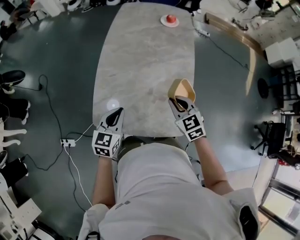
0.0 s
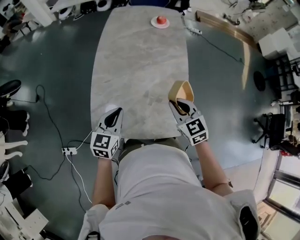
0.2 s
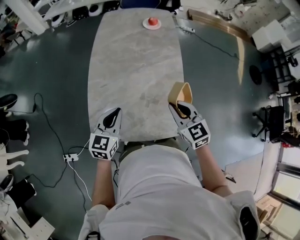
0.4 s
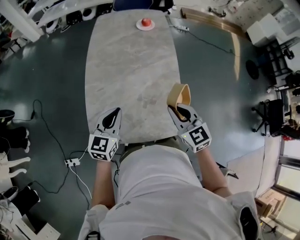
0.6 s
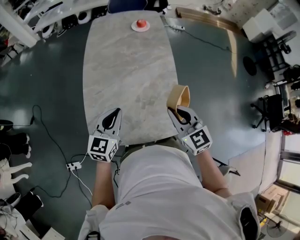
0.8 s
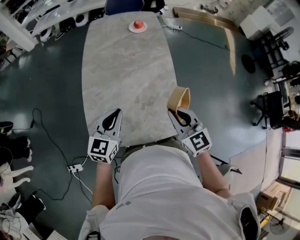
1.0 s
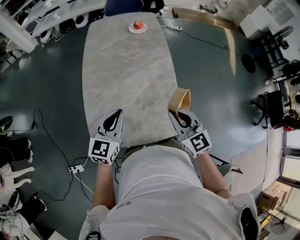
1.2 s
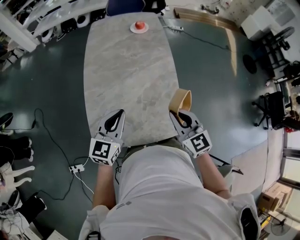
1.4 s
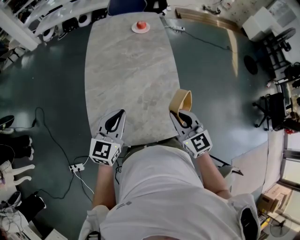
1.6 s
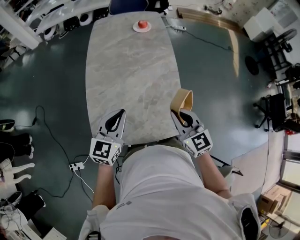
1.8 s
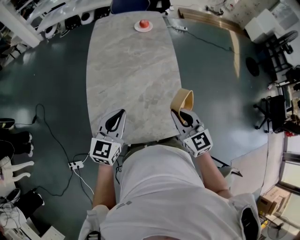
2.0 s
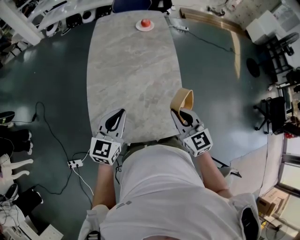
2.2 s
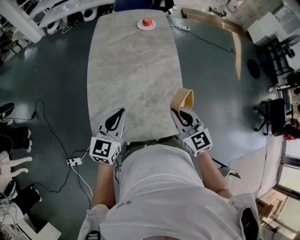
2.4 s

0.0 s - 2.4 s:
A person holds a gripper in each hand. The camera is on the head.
0.0 s - 1.2 s: The left gripper moves upward and to the right, approximately 10 cm. The right gripper heads upward and backward, covering approximately 10 cm, and turns by some 20 degrees.
1.2 s - 2.4 s: The grippers make only small movements.

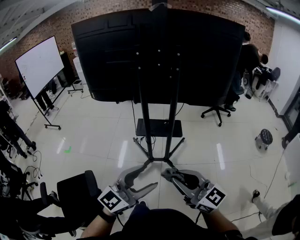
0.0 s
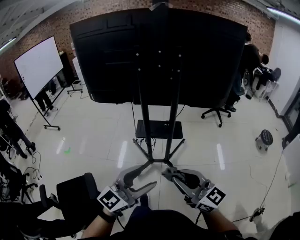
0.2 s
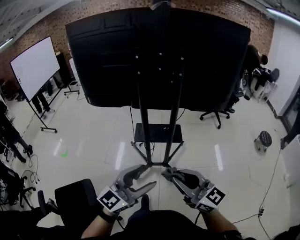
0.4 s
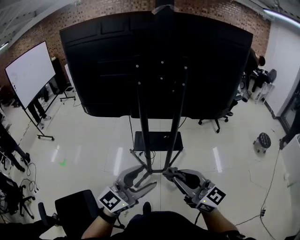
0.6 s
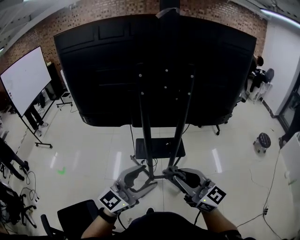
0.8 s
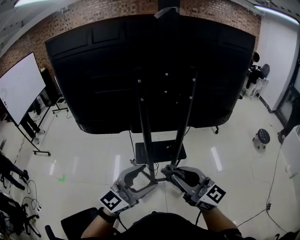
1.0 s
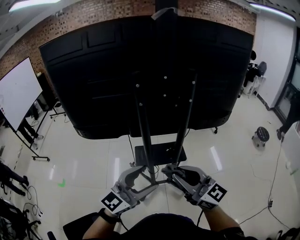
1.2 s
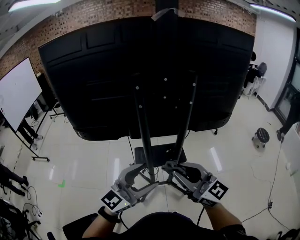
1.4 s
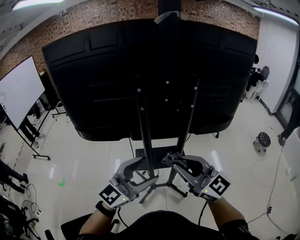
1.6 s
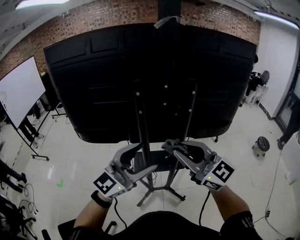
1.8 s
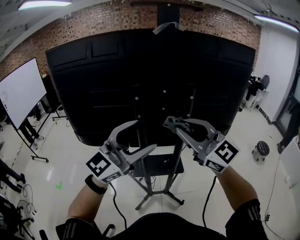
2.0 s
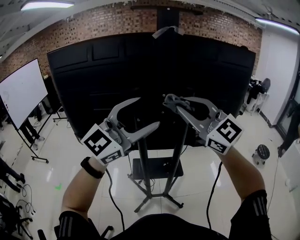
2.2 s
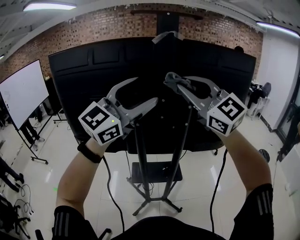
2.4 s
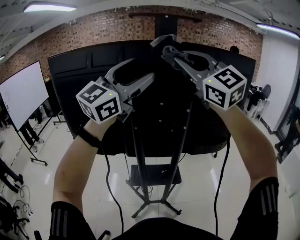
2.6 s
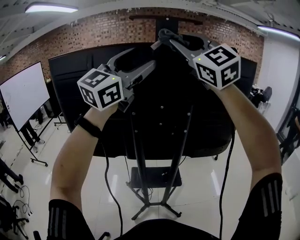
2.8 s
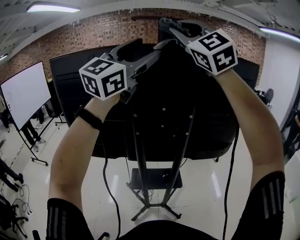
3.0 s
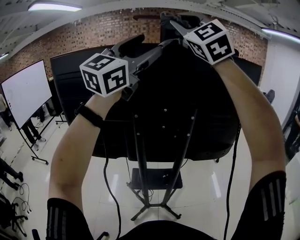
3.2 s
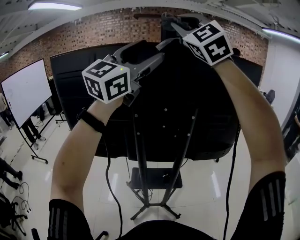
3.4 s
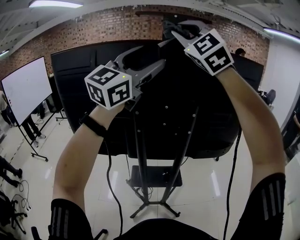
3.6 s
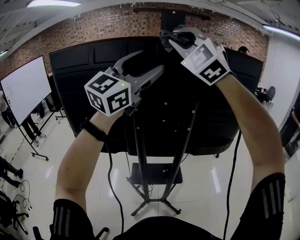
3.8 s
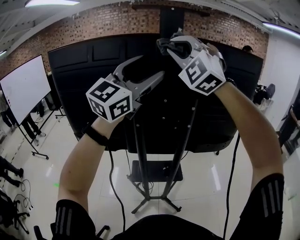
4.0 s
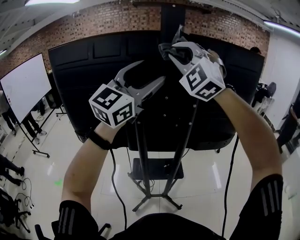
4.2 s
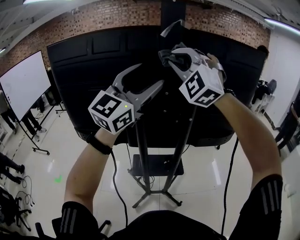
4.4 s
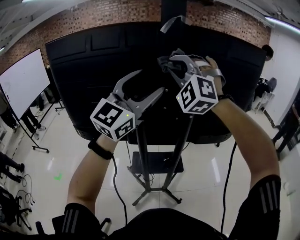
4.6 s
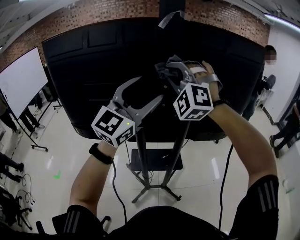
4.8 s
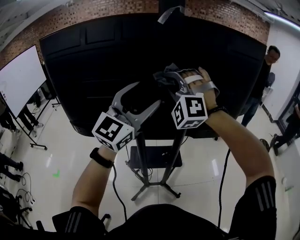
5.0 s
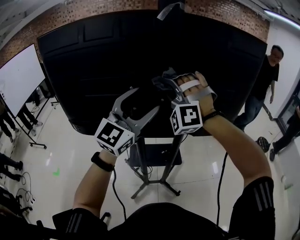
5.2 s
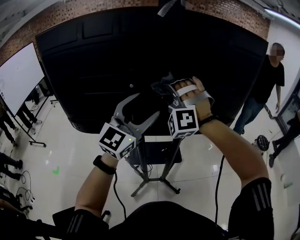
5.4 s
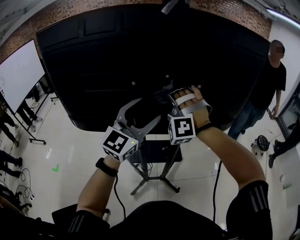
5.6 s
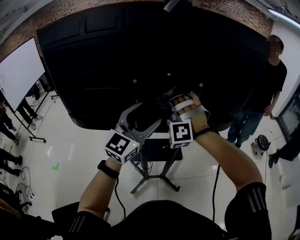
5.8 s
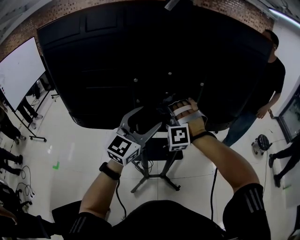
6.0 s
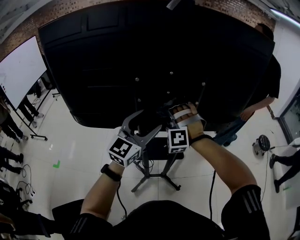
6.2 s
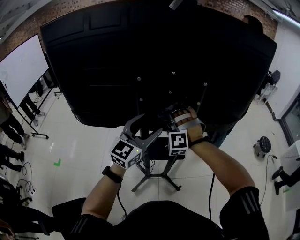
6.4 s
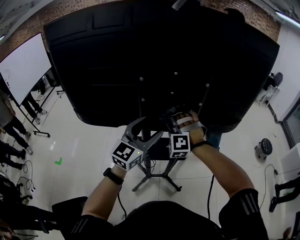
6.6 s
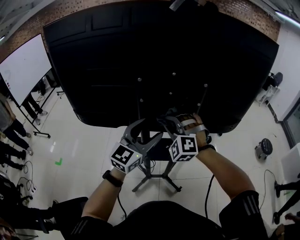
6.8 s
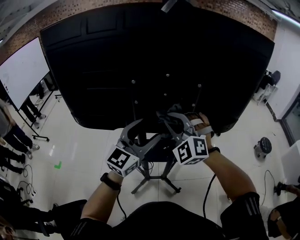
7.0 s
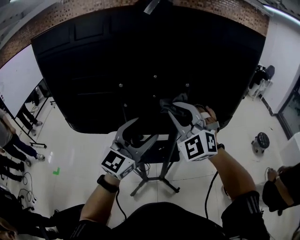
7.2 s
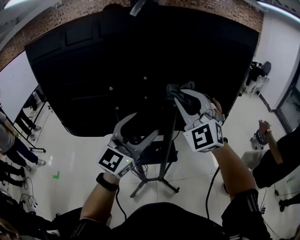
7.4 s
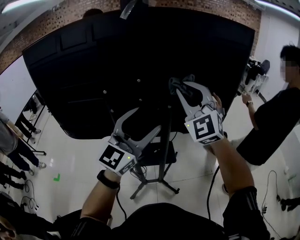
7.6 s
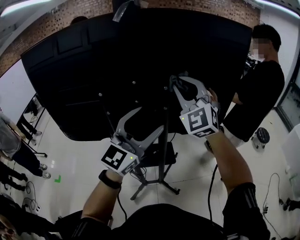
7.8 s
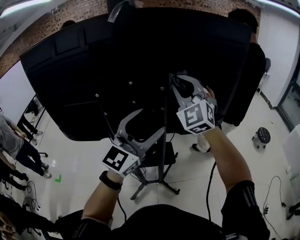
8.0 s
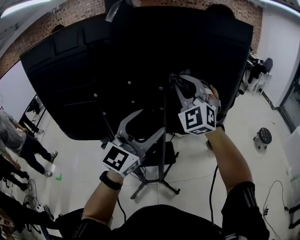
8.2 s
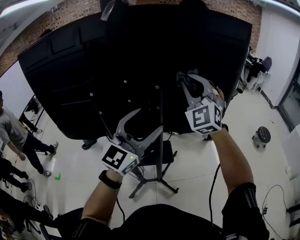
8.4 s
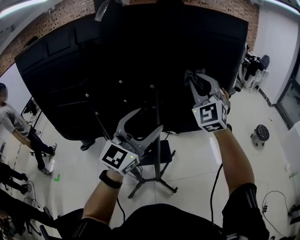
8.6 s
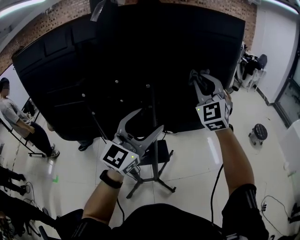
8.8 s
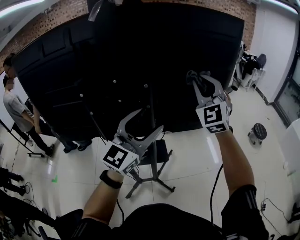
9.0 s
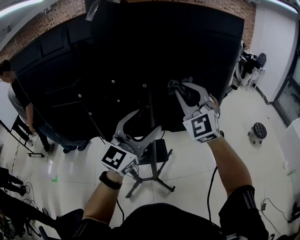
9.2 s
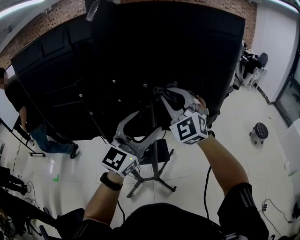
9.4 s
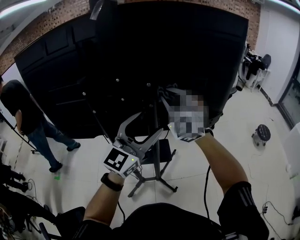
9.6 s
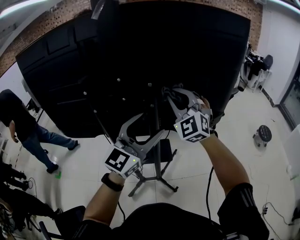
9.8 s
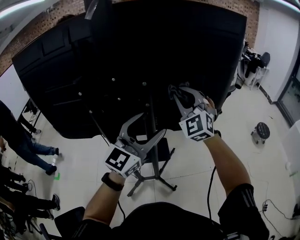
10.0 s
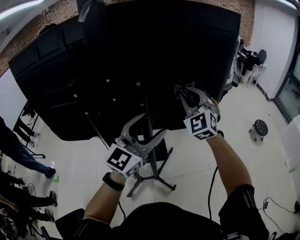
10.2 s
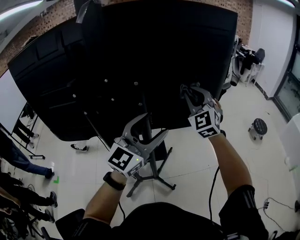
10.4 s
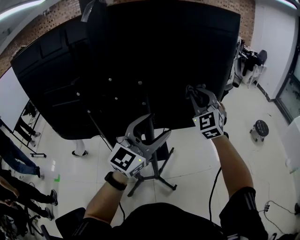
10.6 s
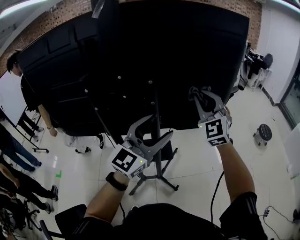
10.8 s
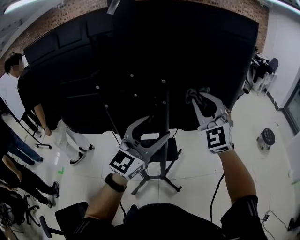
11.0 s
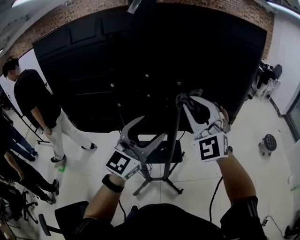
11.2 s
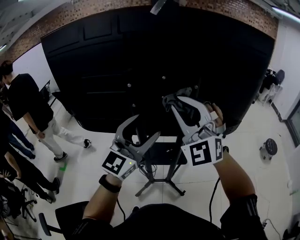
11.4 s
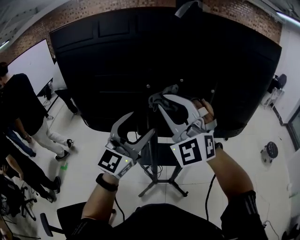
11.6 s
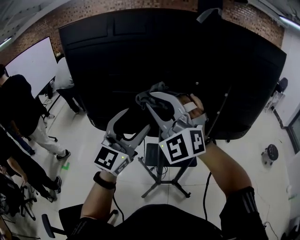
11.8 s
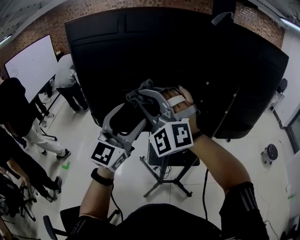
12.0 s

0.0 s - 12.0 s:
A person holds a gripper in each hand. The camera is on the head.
0.0 s - 1.6 s: Both grippers move forward, approximately 30 cm.
1.6 s - 3.0 s: The two grippers go approximately 50 cm upward and forward. The left gripper rotates approximately 20 degrees; the right gripper twists about 50 degrees counterclockwise, seen from behind.
3.0 s - 4.4 s: The grippers both shift downward by roughly 15 cm. The right gripper changes its angle by approximately 30 degrees.
4.4 s - 6.0 s: The two grippers go about 25 cm downward. The right gripper turns by approximately 30 degrees.
6.0 s - 7.6 s: The right gripper moves upward and to the right, approximately 25 cm, and rotates around the line of its fingers by approximately 50 degrees, clockwise from behind. Meanwhile the left gripper travels to the right and upward by some 10 cm.
7.6 s - 9.0 s: The left gripper is displaced to the right by roughly 10 cm. Meanwhile the right gripper travels to the right and forward by about 15 cm.
9.0 s - 10.4 s: The right gripper moves downward, approximately 10 cm, and travels to the left and back again, roughly 10 cm each way; the left gripper changes place by roughly 5 cm.
10.4 s - 12.0 s: The left gripper moves about 40 cm, and changes its angle by some 20 degrees, while the right gripper changes place by roughly 50 cm, and rotates approximately 40 degrees.

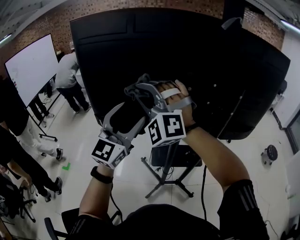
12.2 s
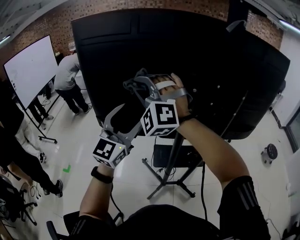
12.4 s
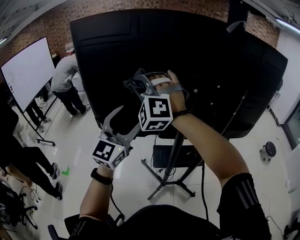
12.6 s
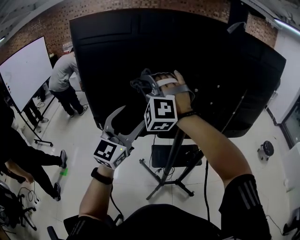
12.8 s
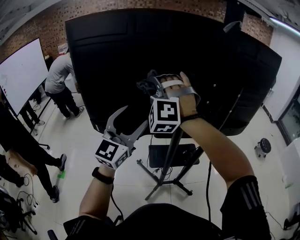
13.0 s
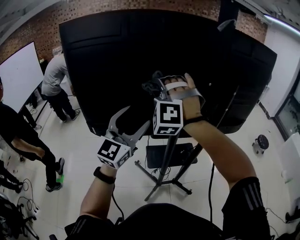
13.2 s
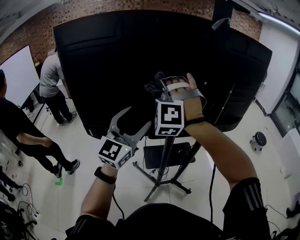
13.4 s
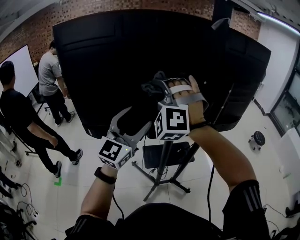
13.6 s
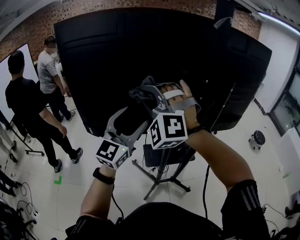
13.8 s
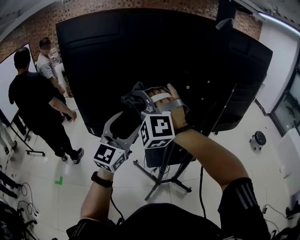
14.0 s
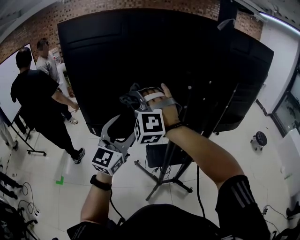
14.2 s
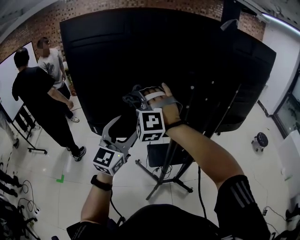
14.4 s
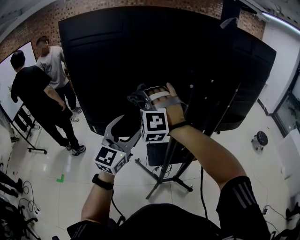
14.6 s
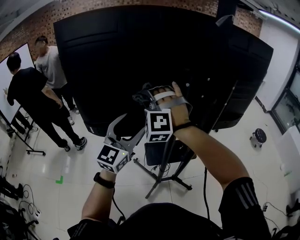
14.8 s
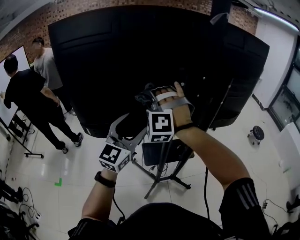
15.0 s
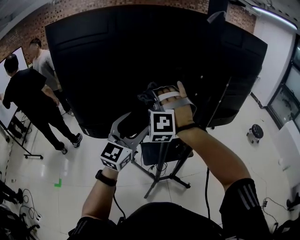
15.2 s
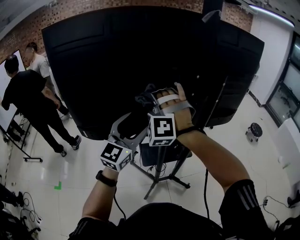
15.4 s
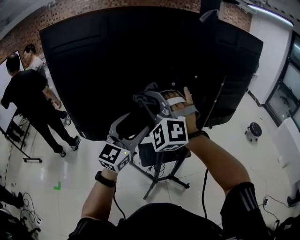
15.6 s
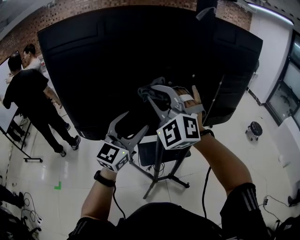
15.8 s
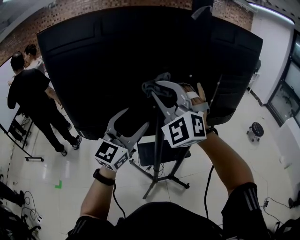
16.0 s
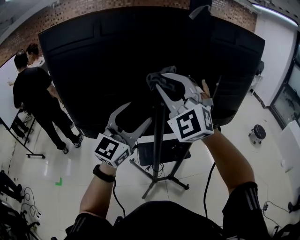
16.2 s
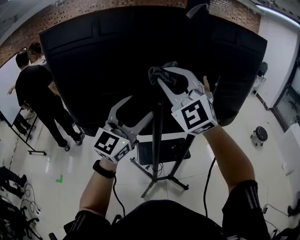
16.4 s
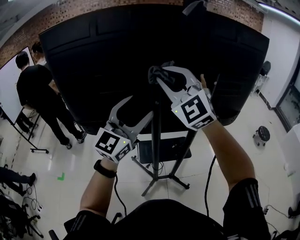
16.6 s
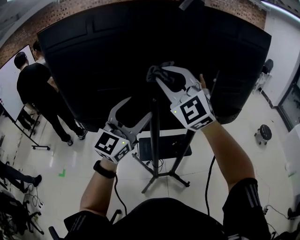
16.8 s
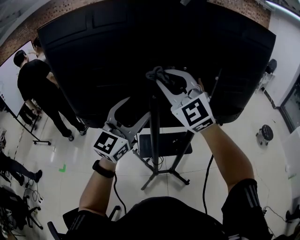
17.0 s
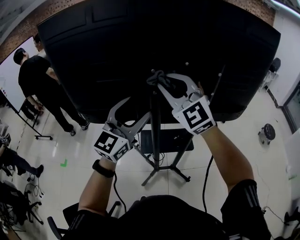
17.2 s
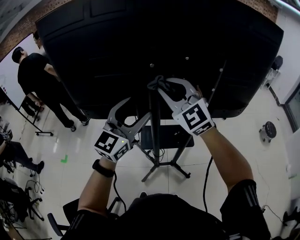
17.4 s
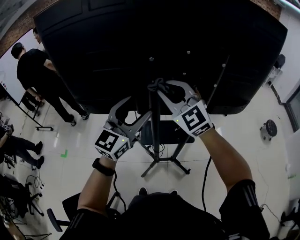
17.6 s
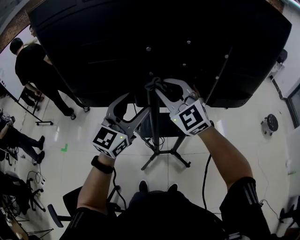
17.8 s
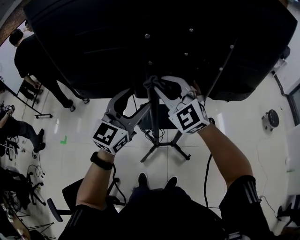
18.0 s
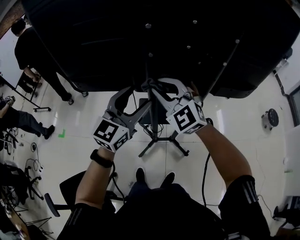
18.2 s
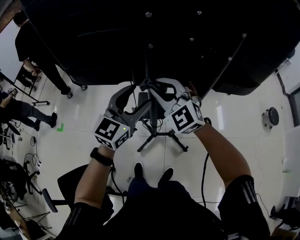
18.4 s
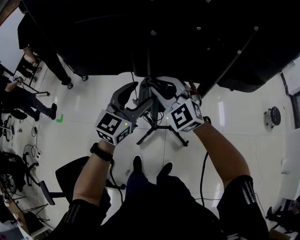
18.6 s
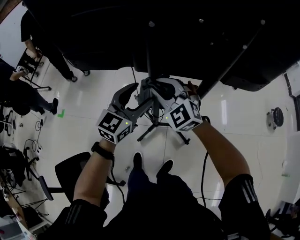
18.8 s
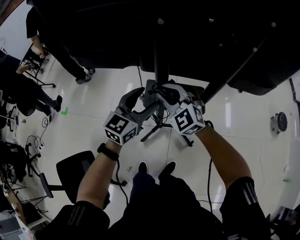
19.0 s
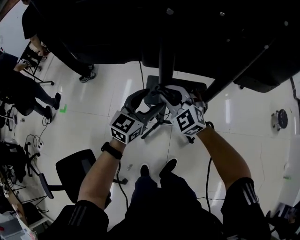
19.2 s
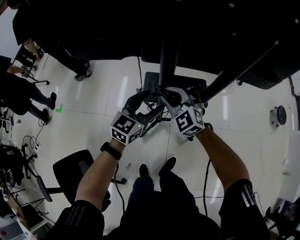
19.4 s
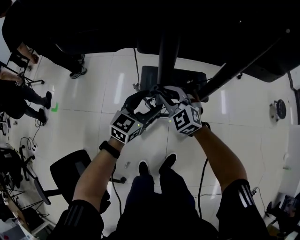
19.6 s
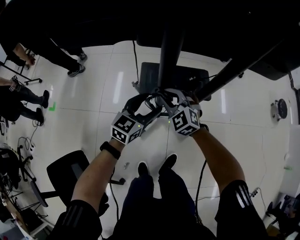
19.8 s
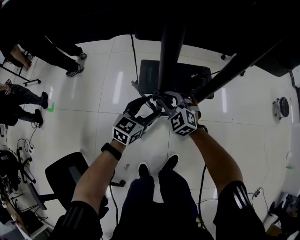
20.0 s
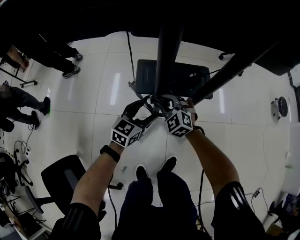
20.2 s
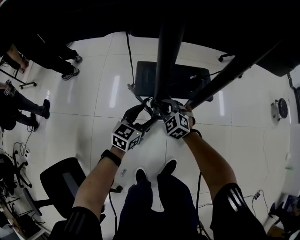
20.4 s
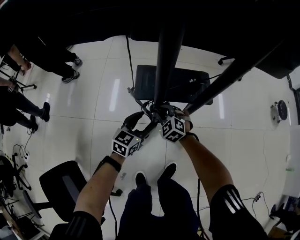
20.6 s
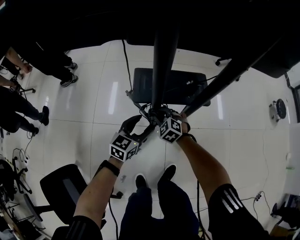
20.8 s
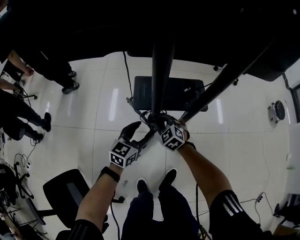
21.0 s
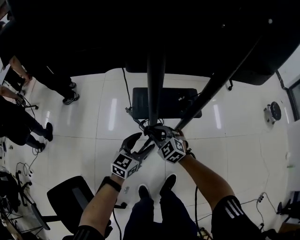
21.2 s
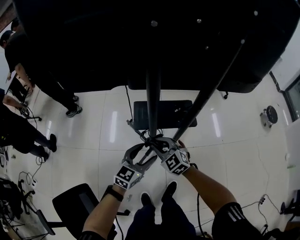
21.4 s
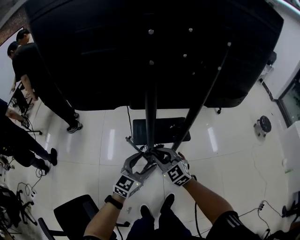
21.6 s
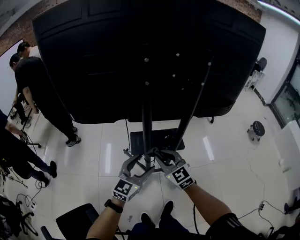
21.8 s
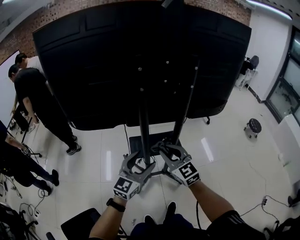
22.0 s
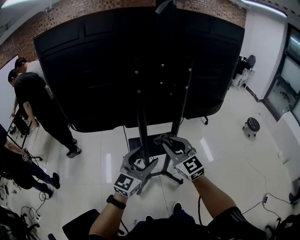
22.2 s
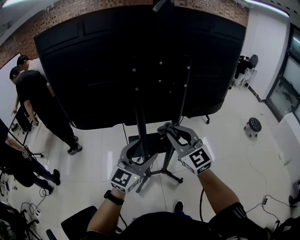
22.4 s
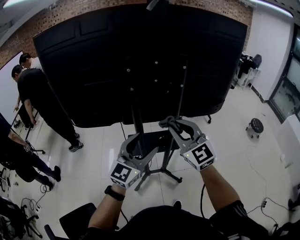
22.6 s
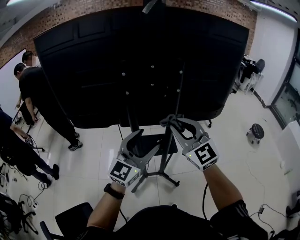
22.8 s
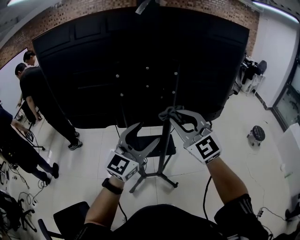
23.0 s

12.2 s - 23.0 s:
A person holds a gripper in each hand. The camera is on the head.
12.2 s - 13.8 s: The right gripper goes left and right, roughly 10 cm each way, reversing 2 times.
13.8 s - 15.2 s: The right gripper moves forward and downward, about 10 cm.
15.2 s - 16.8 s: The grippers both shift to the right and upward by some 15 cm. The right gripper rotates some 50 degrees.
16.8 s - 18.4 s: Both grippers move downward, some 25 cm. The right gripper turns by about 20 degrees; the left gripper turns by approximately 20 degrees.
18.4 s - 20.0 s: The grippers both shift downward by roughly 40 cm. The right gripper rotates approximately 20 degrees, while the left gripper turns by approximately 20 degrees.
20.0 s - 21.4 s: The two grippers go roughly 10 cm backward and upward.
21.4 s - 23.0 s: The two grippers go some 40 cm upward. The left gripper rotates roughly 30 degrees. Meanwhile the right gripper angles its fingers upward, by roughly 30 degrees.
